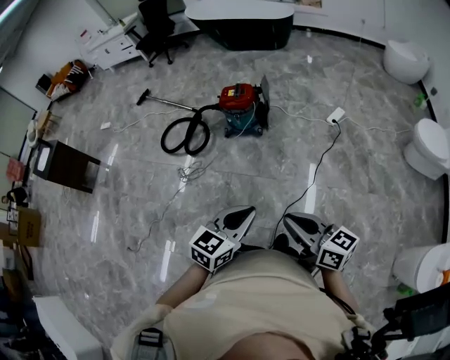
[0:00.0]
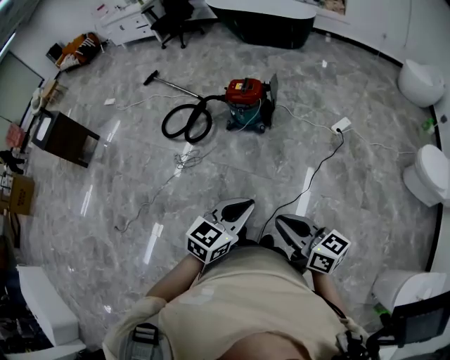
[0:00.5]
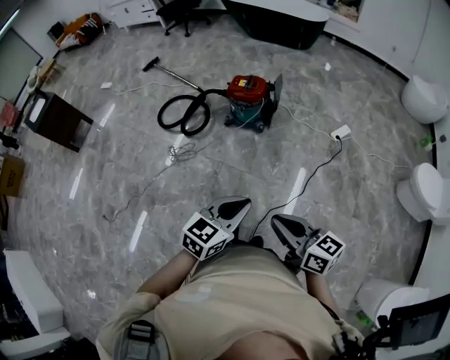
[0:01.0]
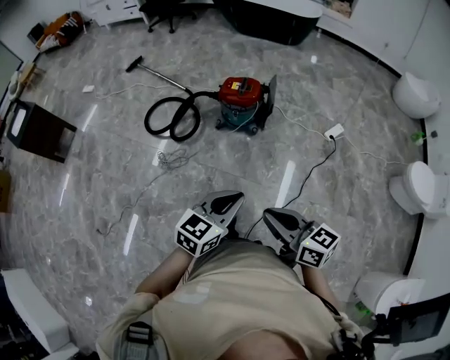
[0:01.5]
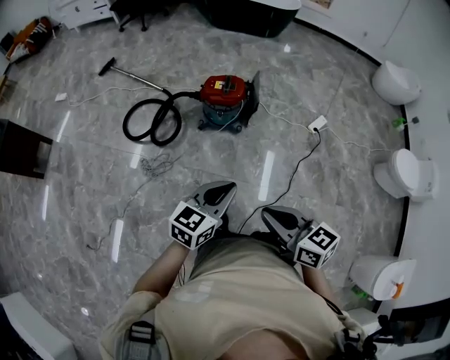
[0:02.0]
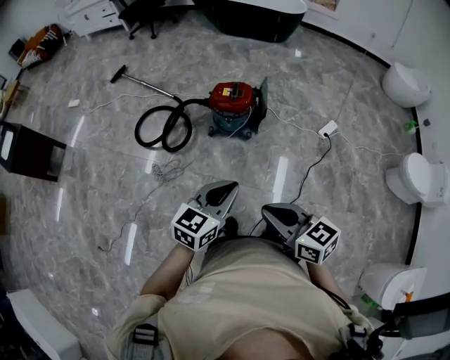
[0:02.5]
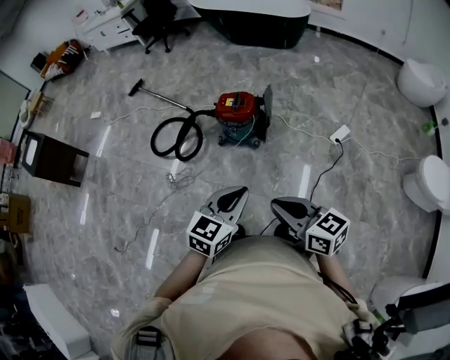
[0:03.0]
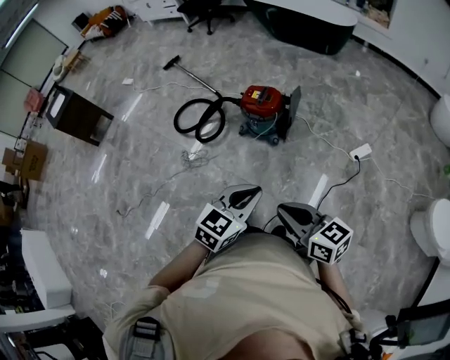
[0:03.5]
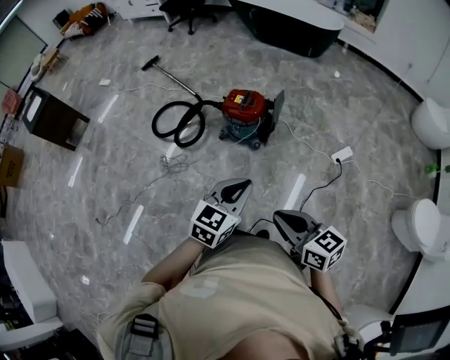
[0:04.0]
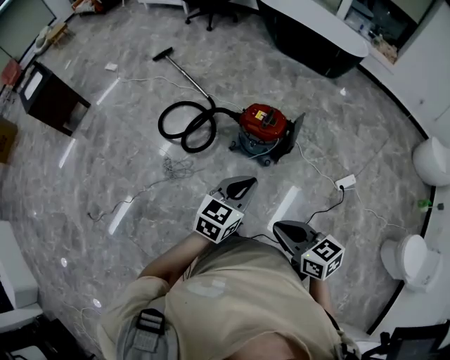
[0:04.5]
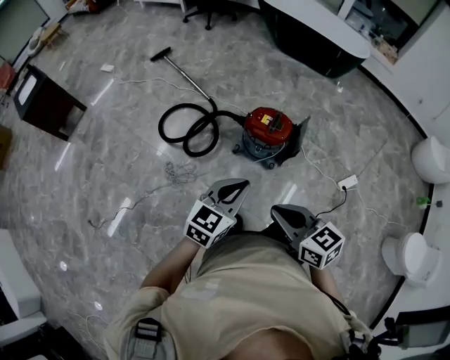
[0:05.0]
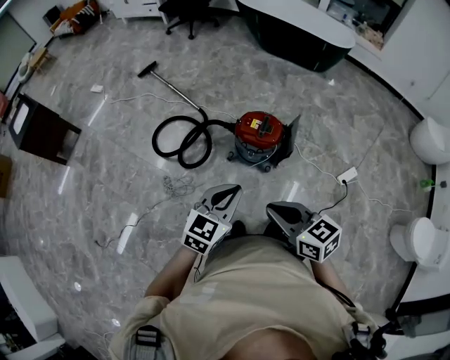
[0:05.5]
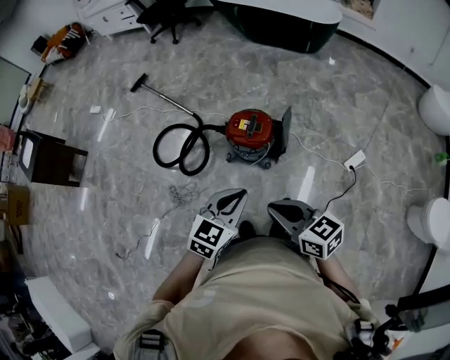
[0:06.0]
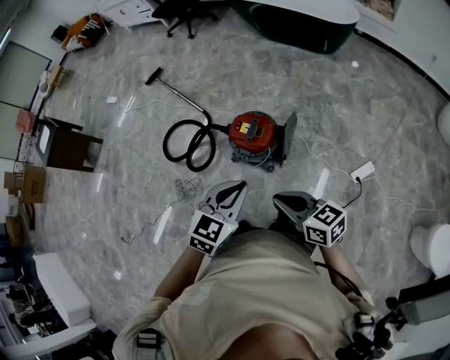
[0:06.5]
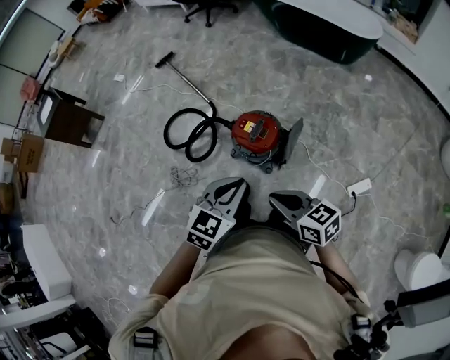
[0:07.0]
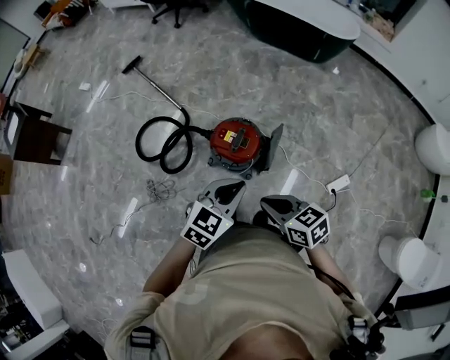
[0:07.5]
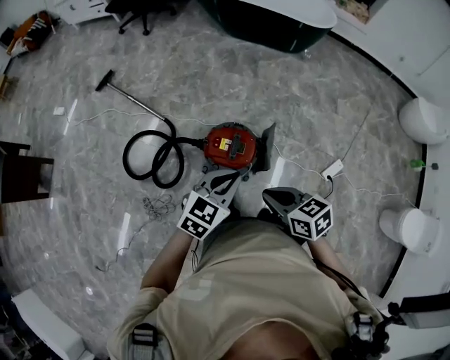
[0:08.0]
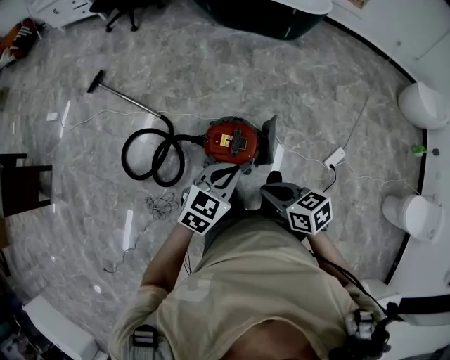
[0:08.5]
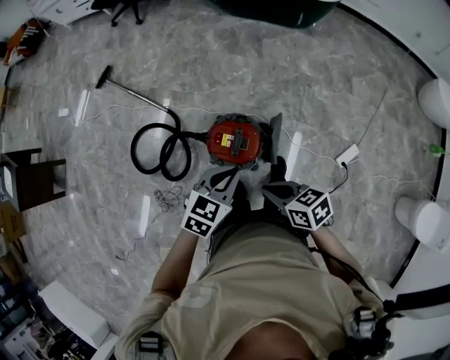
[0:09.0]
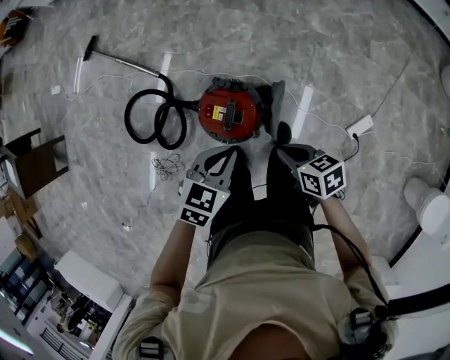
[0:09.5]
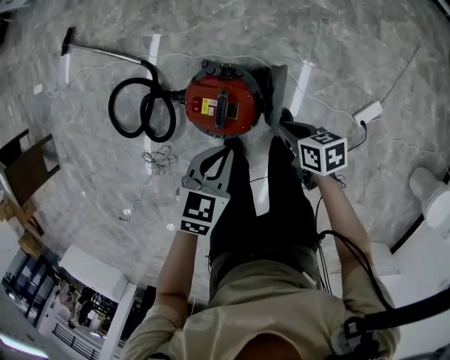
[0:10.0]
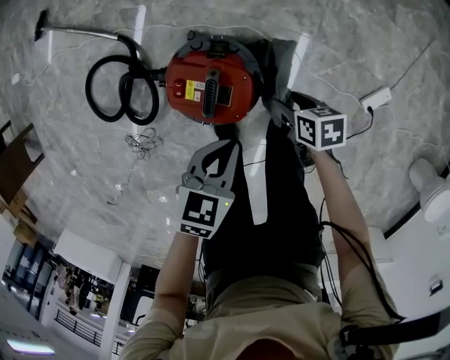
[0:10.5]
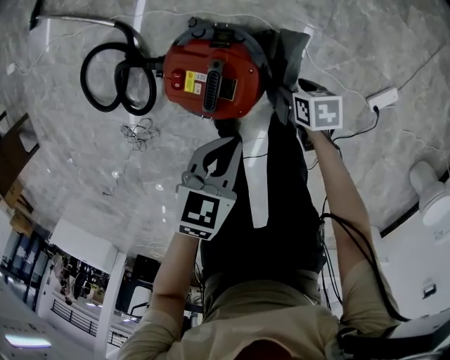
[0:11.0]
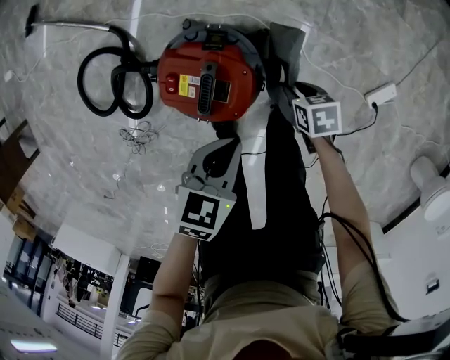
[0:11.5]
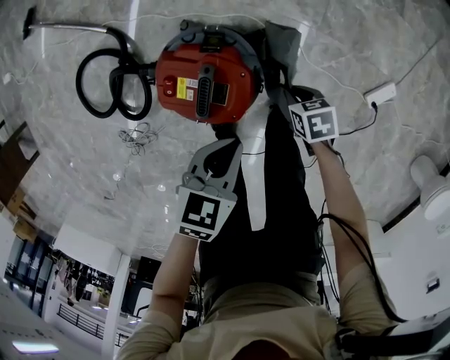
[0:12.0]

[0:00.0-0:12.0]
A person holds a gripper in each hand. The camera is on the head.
0:00.0 to 0:02.0: The left gripper is displaced forward by roughly 25 cm; the right gripper shifts roughly 25 cm forward and to the left.
0:02.0 to 0:04.0: Both grippers travel together to the right, some 20 cm.
0:04.0 to 0:06.0: The grippers both shift forward by approximately 25 cm.
0:06.0 to 0:08.0: The two grippers go roughly 20 cm forward.
0:08.0 to 0:10.0: The left gripper goes some 25 cm downward and forward, and changes its angle by approximately 30 degrees; the right gripper goes approximately 40 cm downward, forward and to the right, and turns by some 30 degrees.
0:10.0 to 0:12.0: The left gripper goes about 15 cm downward. Meanwhile the right gripper travels downward by some 20 cm, changes its angle by some 20 degrees, and opens, then closes again.

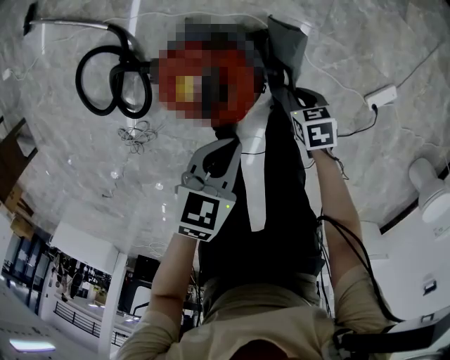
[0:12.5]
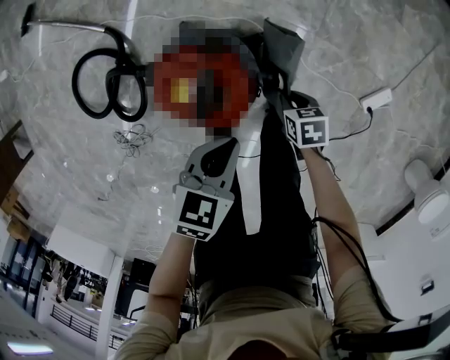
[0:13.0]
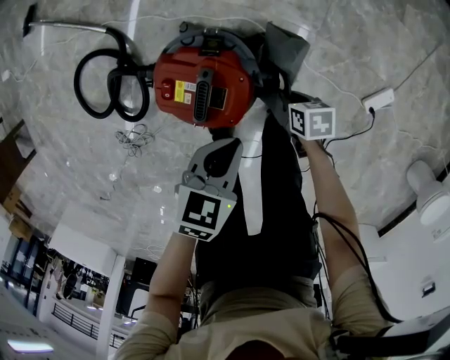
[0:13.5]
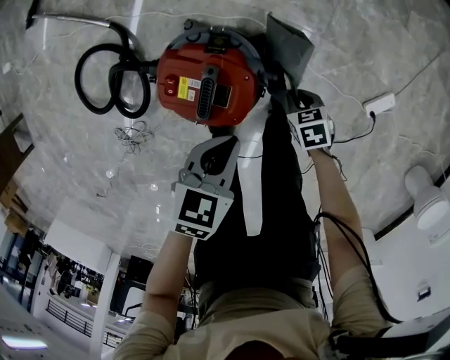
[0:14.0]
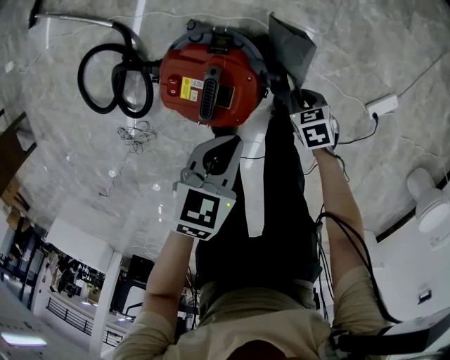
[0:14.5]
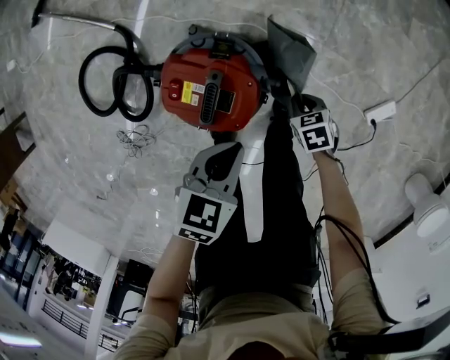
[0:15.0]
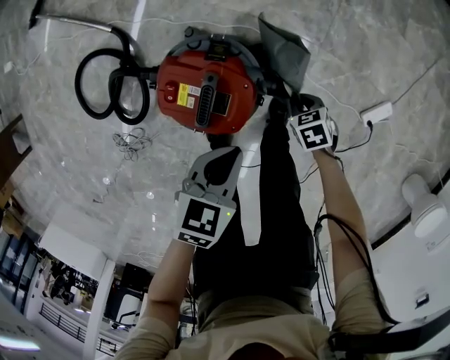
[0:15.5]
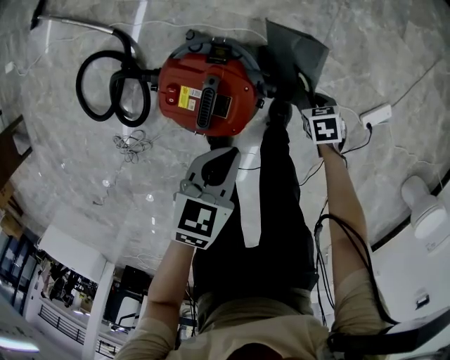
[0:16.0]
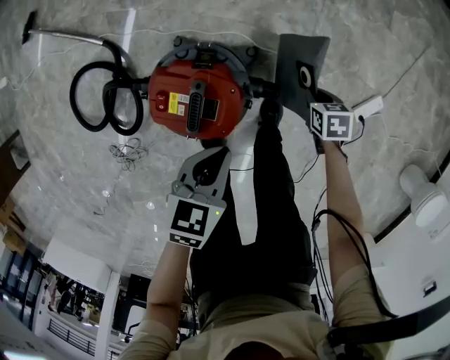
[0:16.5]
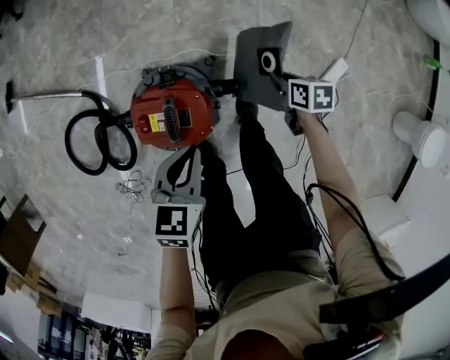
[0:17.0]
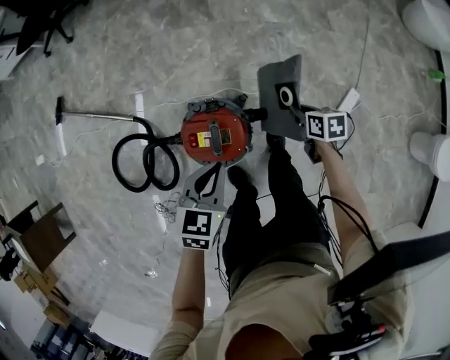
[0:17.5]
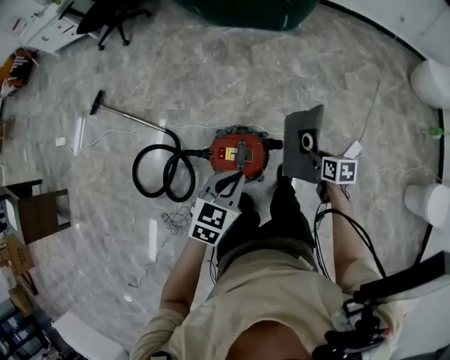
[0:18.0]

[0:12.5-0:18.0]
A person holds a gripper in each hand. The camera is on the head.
0:14.5 to 0:16.0: The right gripper moves some 5 cm.
0:16.0 to 0:18.0: Both grippers move upward, roughly 35 cm. The left gripper rotates some 30 degrees; the right gripper turns by roughly 40 degrees.

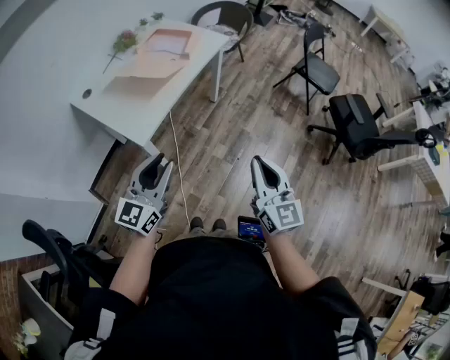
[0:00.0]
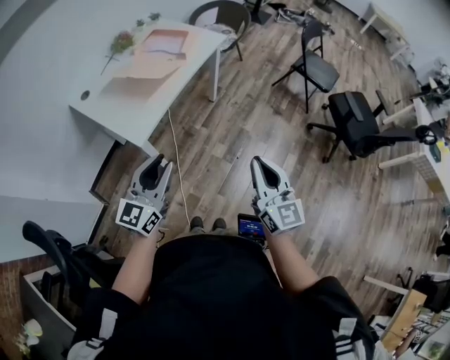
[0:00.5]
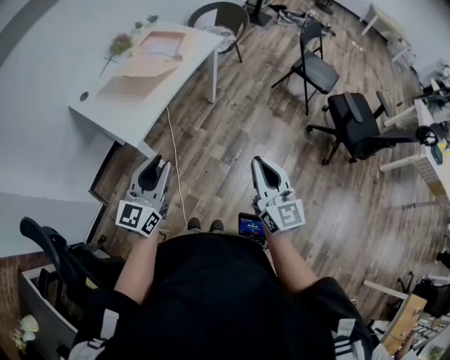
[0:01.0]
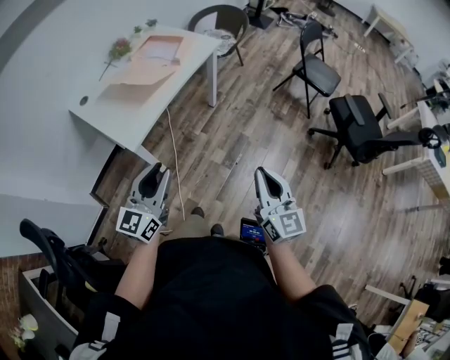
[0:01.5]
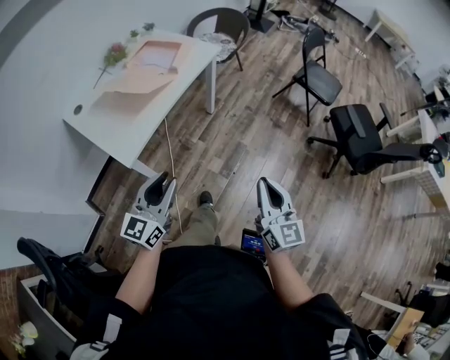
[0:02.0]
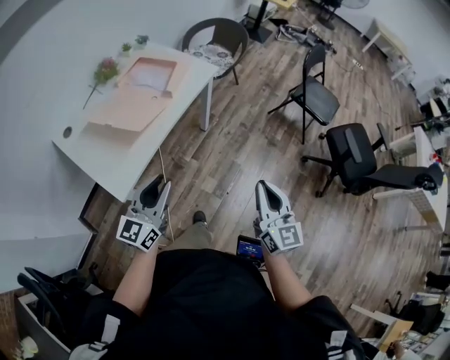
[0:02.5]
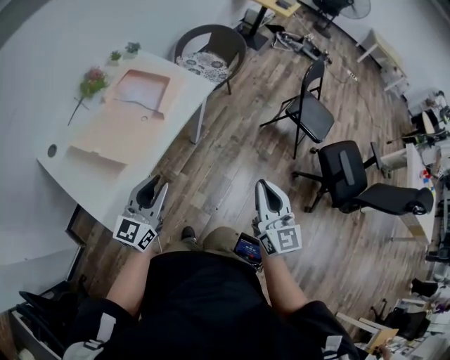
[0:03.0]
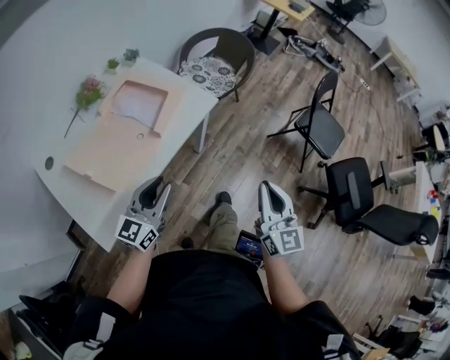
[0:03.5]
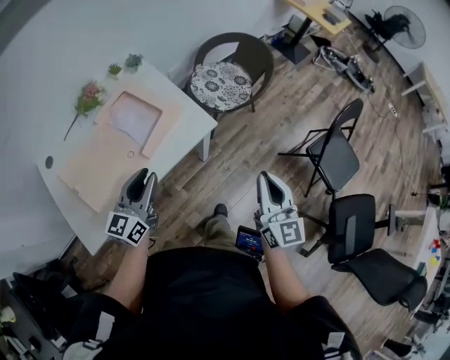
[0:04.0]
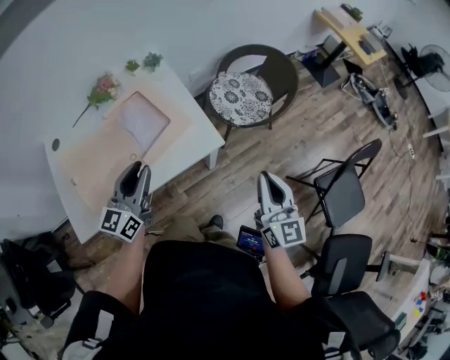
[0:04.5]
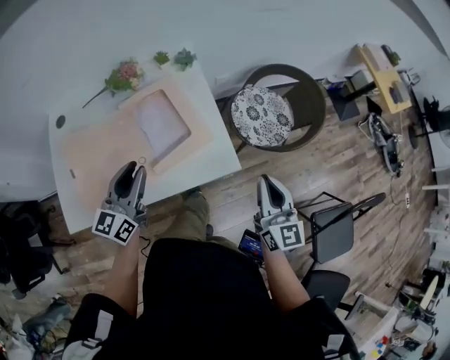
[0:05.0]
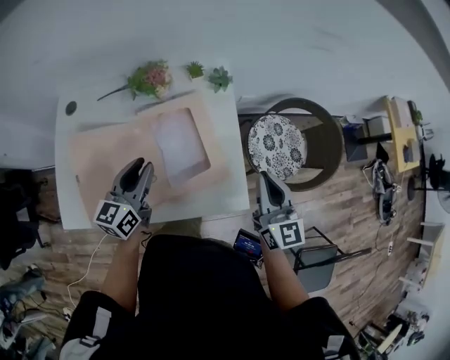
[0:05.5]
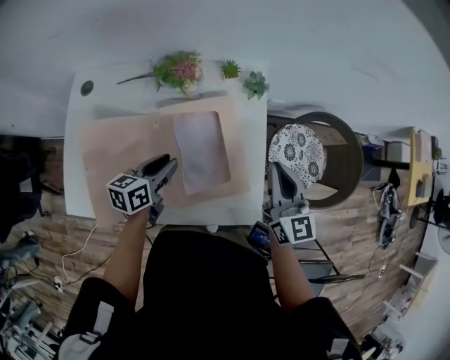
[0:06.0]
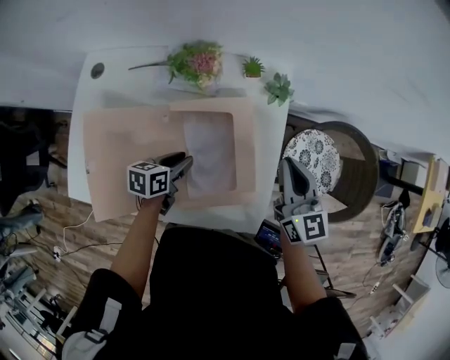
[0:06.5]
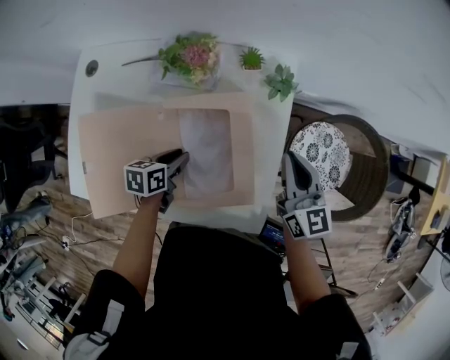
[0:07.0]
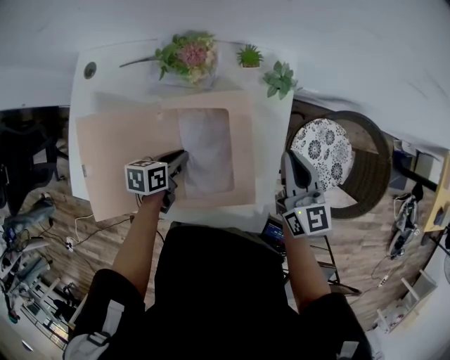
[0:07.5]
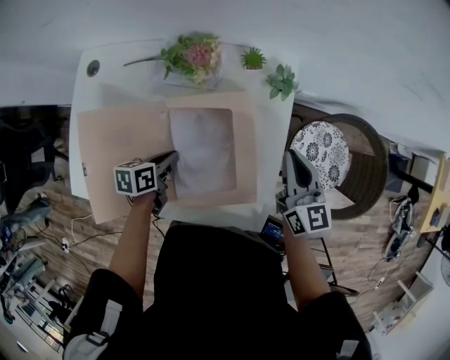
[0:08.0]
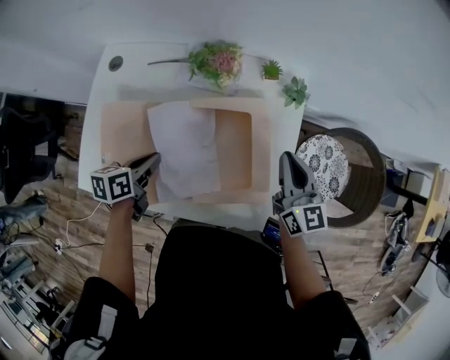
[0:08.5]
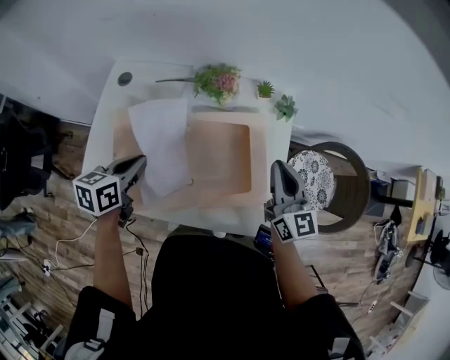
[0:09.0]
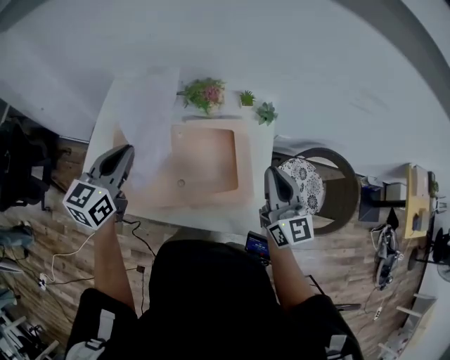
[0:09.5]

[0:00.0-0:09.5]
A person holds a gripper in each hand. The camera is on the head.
0:00.0 to 0:02.0: The right gripper travels to the right by approximately 10 cm; the left gripper heads to the right and forward, covering roughly 10 cm.
0:02.0 to 0:04.0: The pair of grippers is taken forward, some 50 cm. The left gripper swivels about 20 degrees.
0:04.0 to 0:05.5: The right gripper shifts by roughly 40 cm, and turns by roughly 40 degrees. The left gripper ends up about 25 cm from where it was, and swivels about 40 degrees.
0:05.5 to 0:07.5: The left gripper is displaced downward by roughly 20 cm, and points its fingers approximately 40 degrees further downward, while the right gripper heads forward and downward, covering roughly 20 cm, and rotates approximately 20 degrees.
0:07.5 to 0:09.5: The right gripper moves upward, backward and to the left, roughly 20 cm. Meanwhile the left gripper is displaced upward and to the left by about 35 cm, and tips its fingers upward by roughly 30 degrees.
